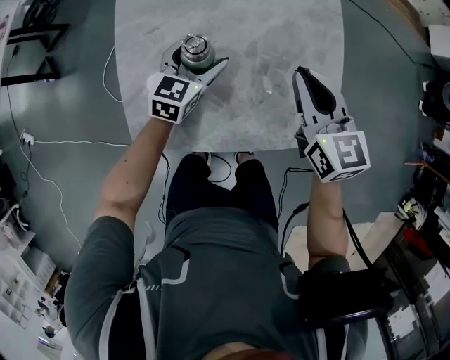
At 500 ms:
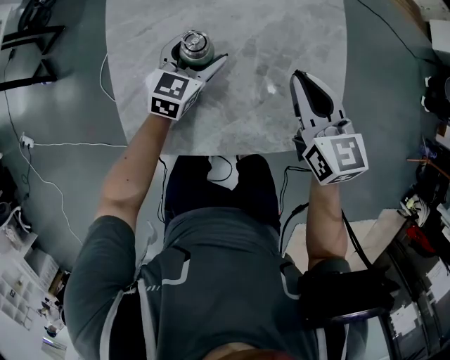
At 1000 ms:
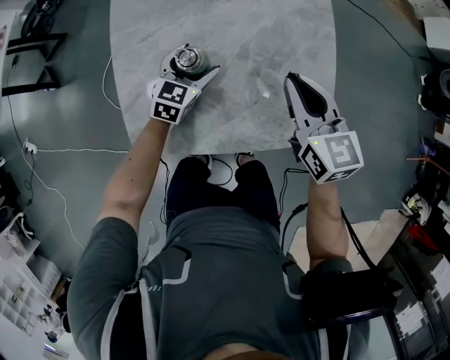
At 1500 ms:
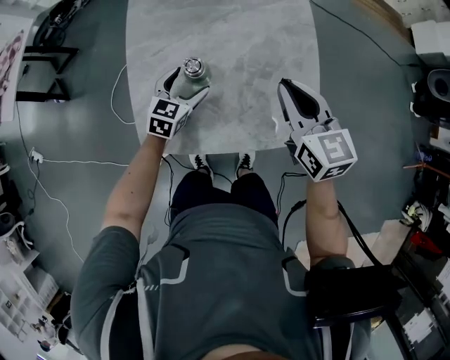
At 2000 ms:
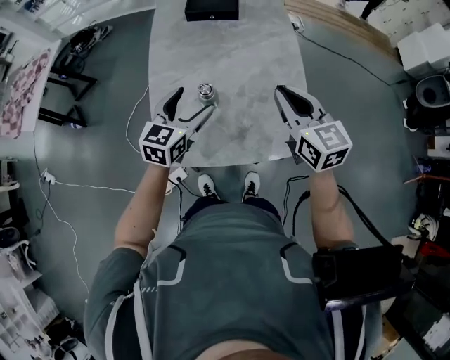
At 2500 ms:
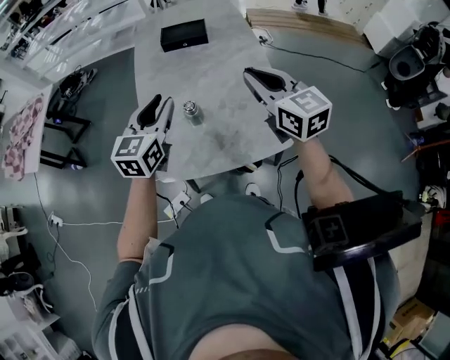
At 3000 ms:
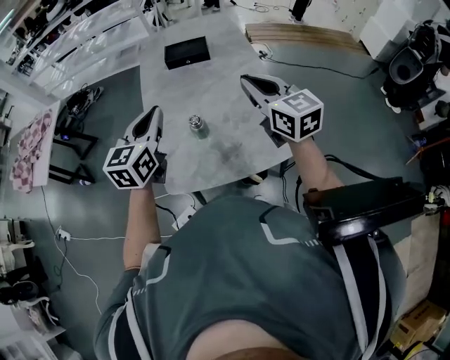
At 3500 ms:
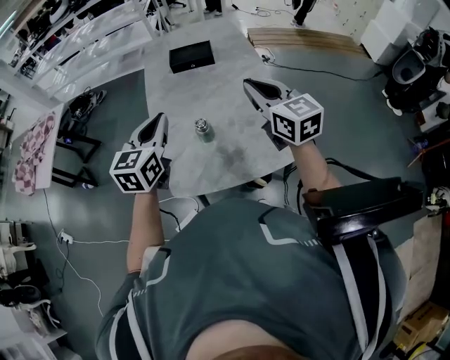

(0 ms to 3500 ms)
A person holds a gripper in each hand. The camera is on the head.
0 ms - 2000 ms: The grippers both shift upward and backward by approximately 20 cm.
2000 ms - 3500 ms: The right gripper shifts some 10 cm upward. The left gripper moves upward, some 15 cm, and closes up.

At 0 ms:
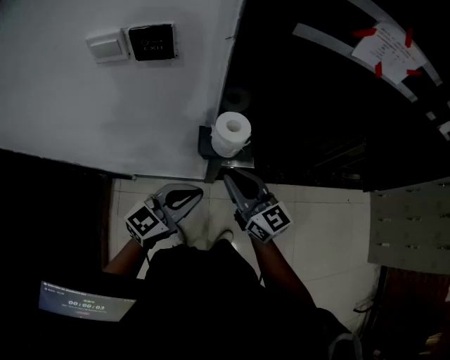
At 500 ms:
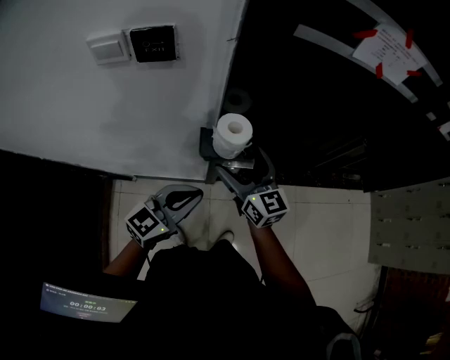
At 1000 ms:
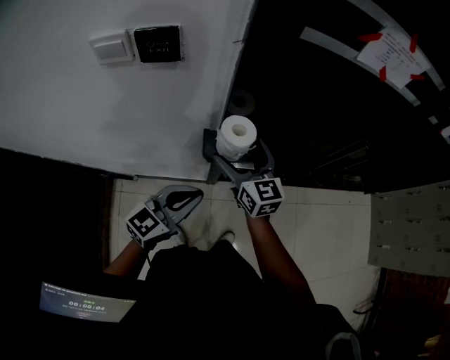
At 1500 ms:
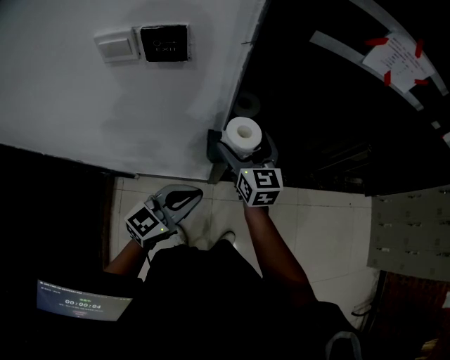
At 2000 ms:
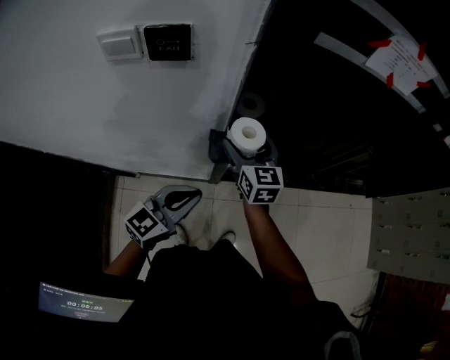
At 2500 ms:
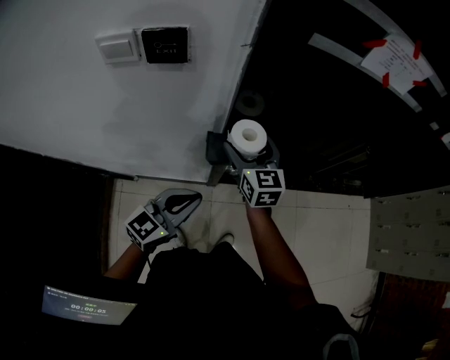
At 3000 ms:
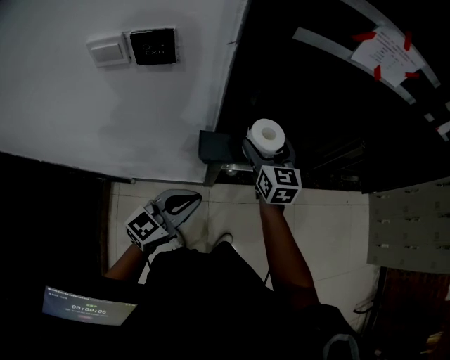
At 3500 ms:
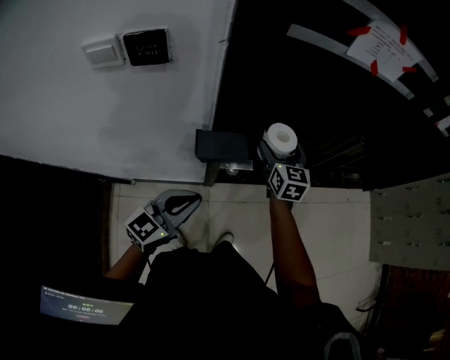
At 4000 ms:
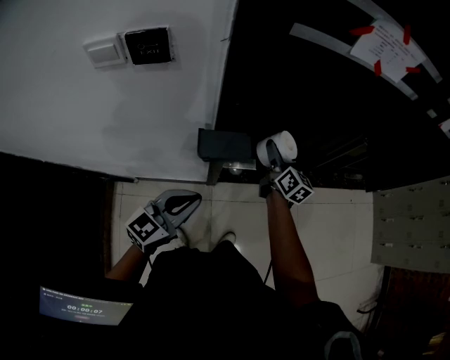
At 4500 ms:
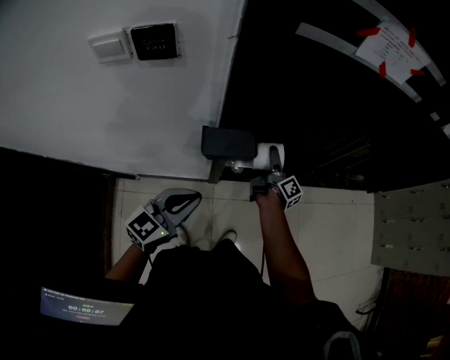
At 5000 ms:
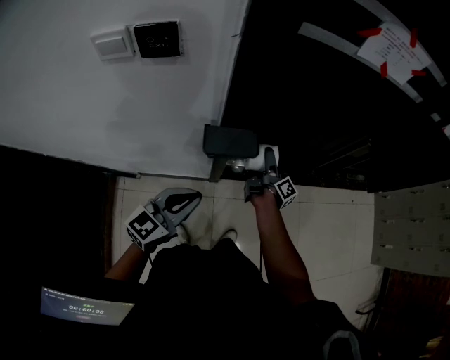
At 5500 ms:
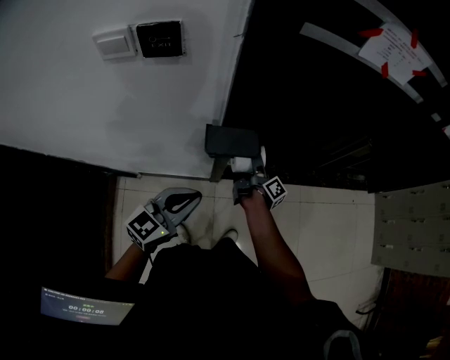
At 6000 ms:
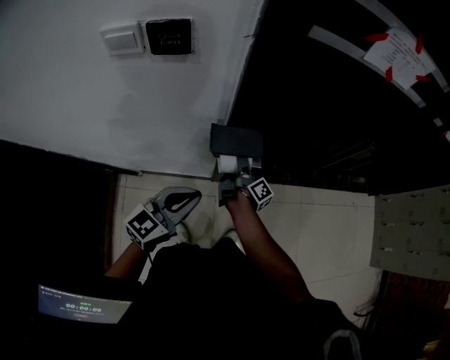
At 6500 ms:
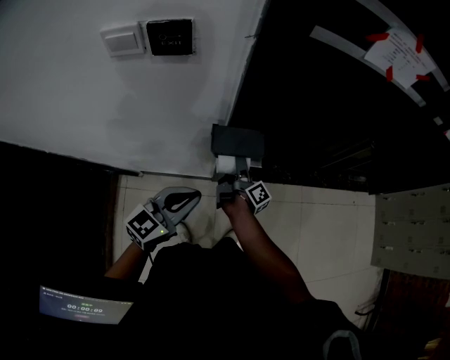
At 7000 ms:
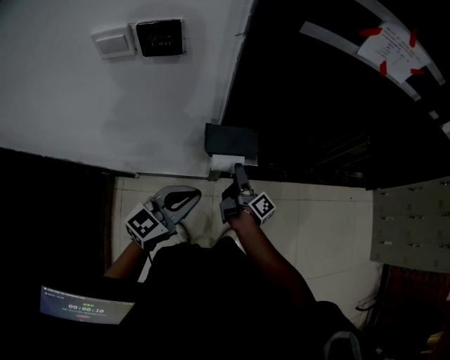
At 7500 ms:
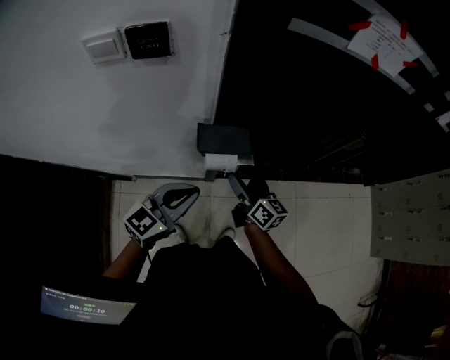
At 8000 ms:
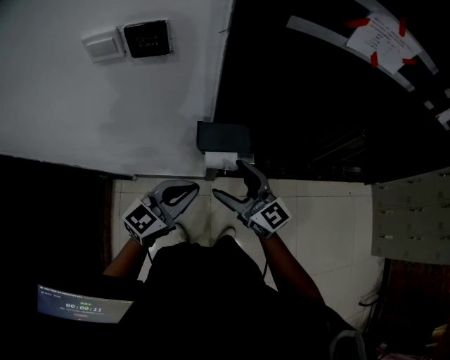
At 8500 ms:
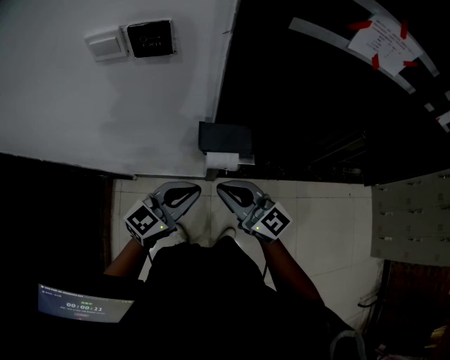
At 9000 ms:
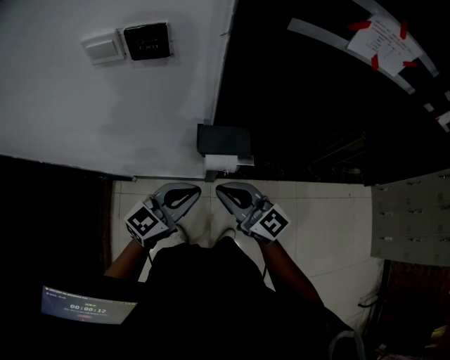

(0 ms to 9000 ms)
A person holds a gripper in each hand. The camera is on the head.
0 ms - 2000 ms: The right gripper is displaced forward by roughly 15 cm, turns by roughly 30 degrees, and opens.
2000 ms - 4500 ms: The right gripper goes roughly 20 cm to the right and downward, and twists approximately 80 degrees clockwise, seen from behind.
4500 ms - 7000 ms: The right gripper travels backward and to the left by roughly 15 cm.
7000 ms - 9000 ms: The right gripper heads upward and backward, covering approximately 20 cm, rotates around the line of its fingers by some 80 degrees, counterclockwise from behind, and closes.

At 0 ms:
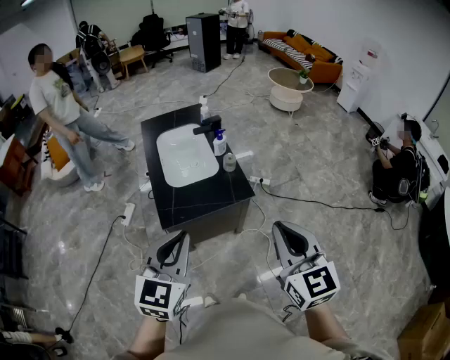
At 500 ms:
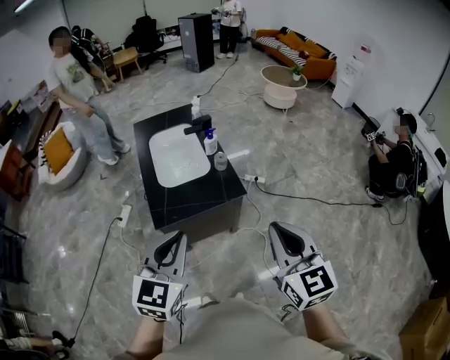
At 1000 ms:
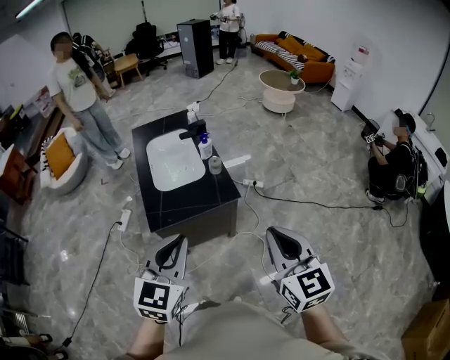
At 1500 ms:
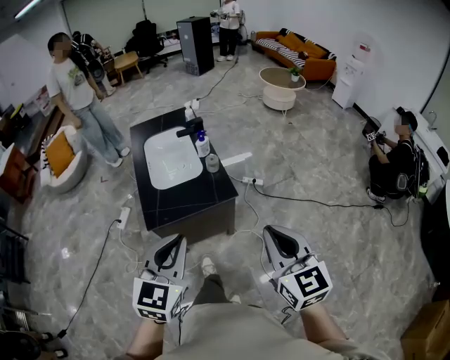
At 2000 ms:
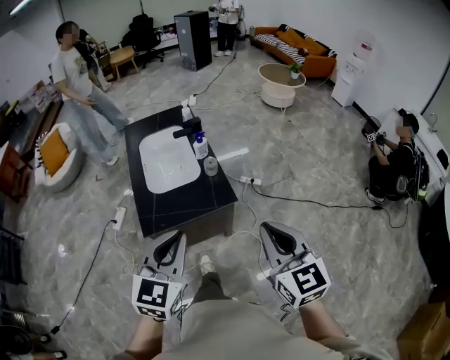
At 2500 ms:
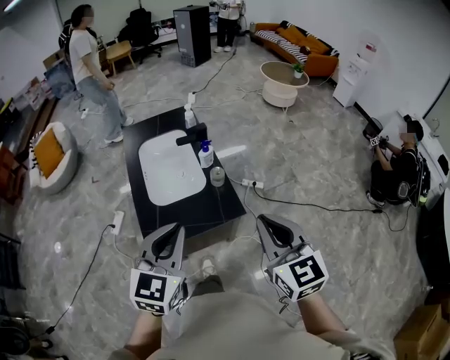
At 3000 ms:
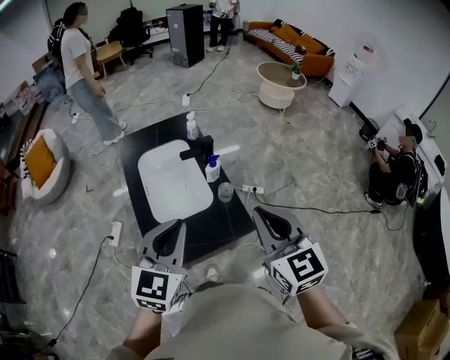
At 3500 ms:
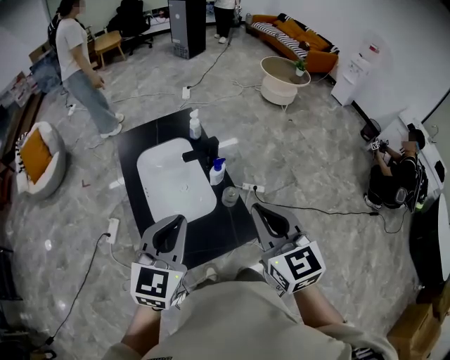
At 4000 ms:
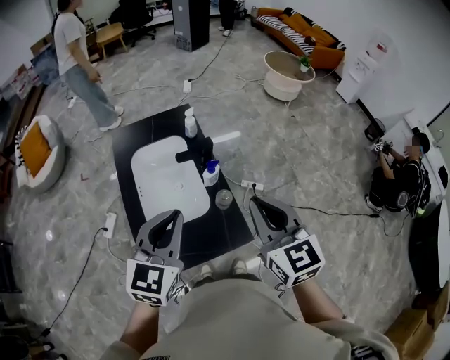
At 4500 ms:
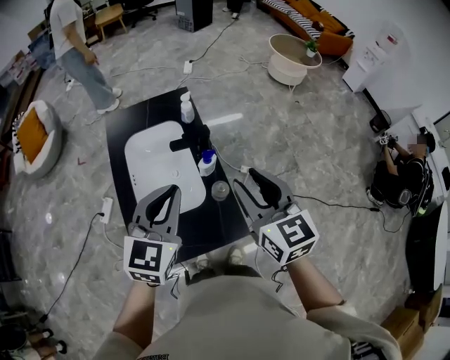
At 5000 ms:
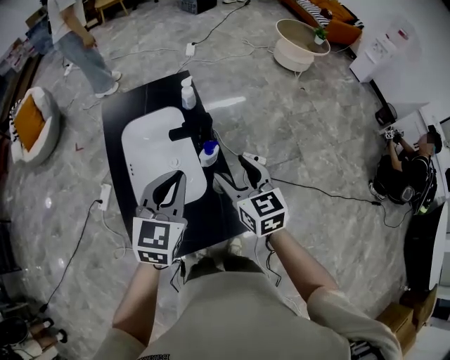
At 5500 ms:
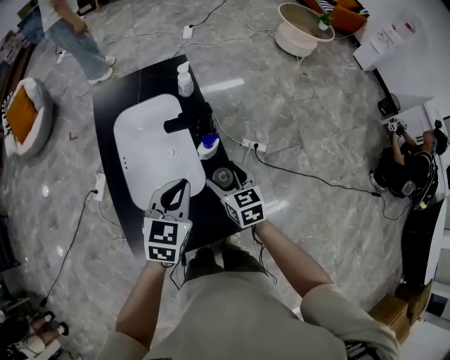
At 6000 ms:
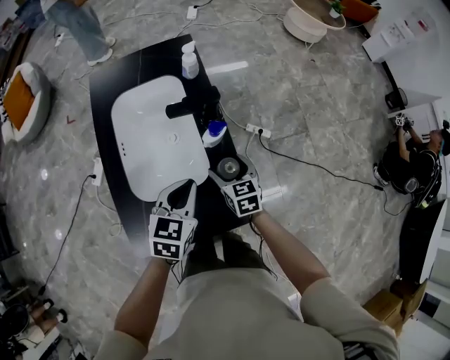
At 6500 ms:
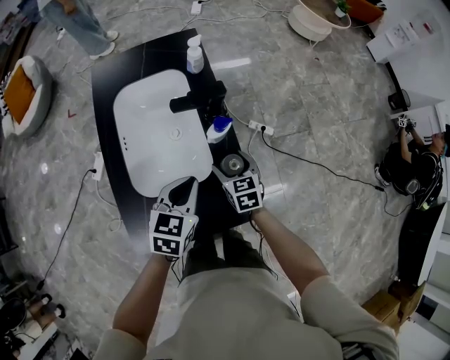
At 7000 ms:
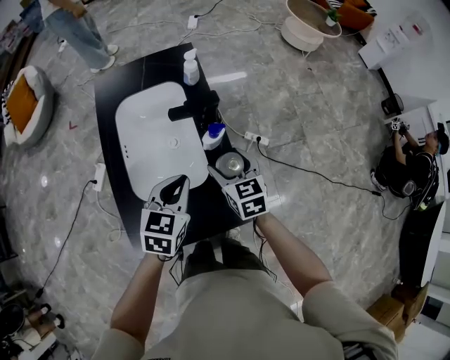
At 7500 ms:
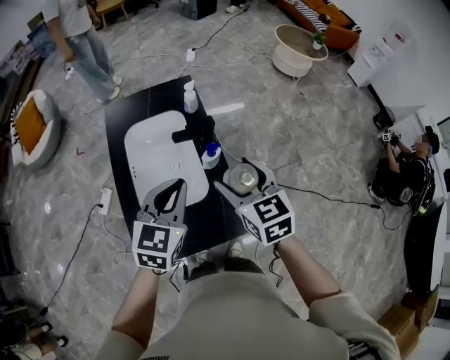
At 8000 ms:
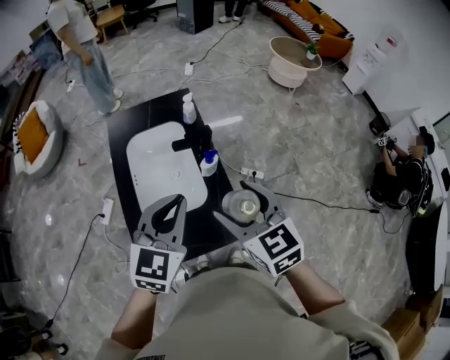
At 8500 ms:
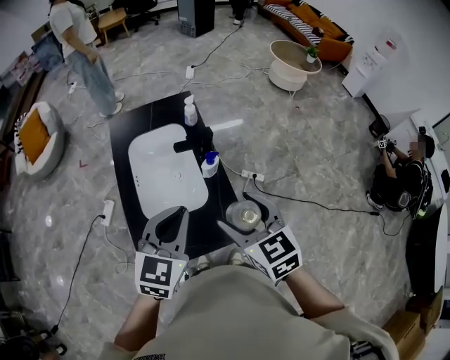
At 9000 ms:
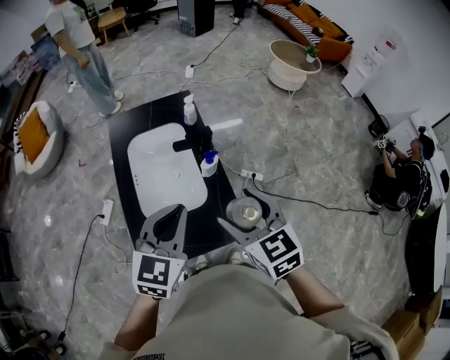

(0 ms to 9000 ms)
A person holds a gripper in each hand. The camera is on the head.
0 ms - 2000 ms: The two grippers go about 5 cm to the right.
2000 ms - 4500 ms: The grippers both shift forward by approximately 40 cm. The right gripper opens up.
4500 ms - 7000 ms: The grippers both shift downward by roughly 25 cm. The left gripper rotates about 20 degrees. Meanwhile the right gripper opens its fingers.
7000 ms - 9000 ms: Both grippers travel together upward and backward, some 25 cm.

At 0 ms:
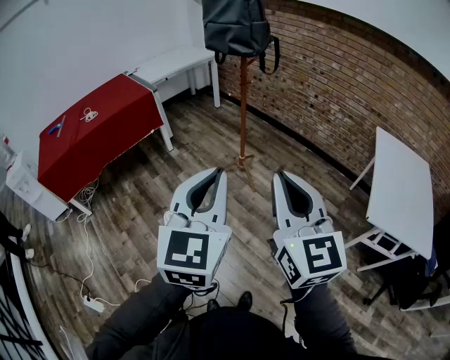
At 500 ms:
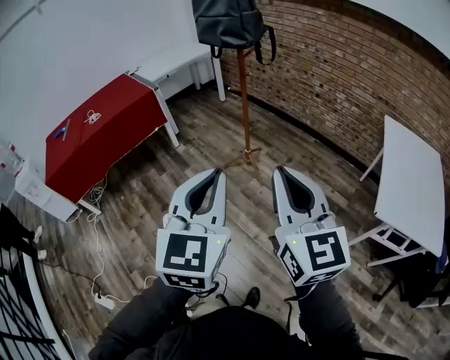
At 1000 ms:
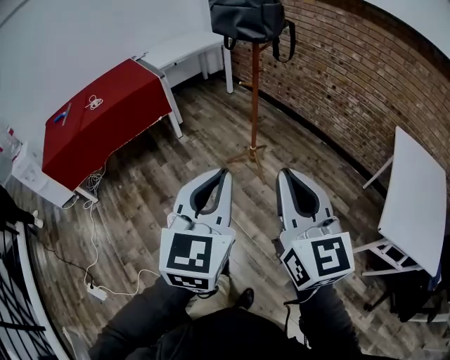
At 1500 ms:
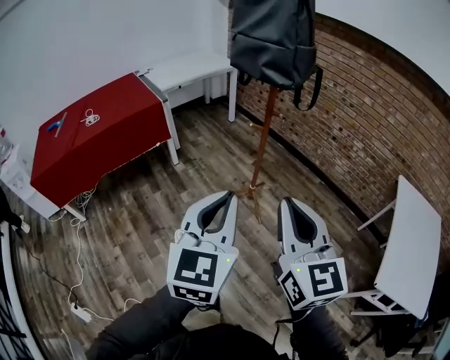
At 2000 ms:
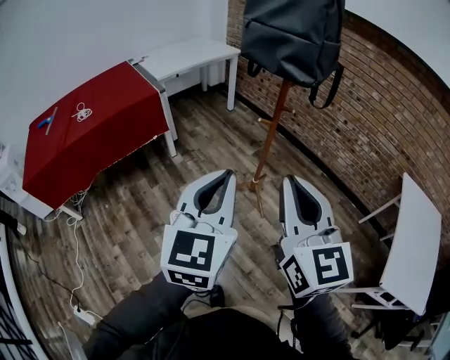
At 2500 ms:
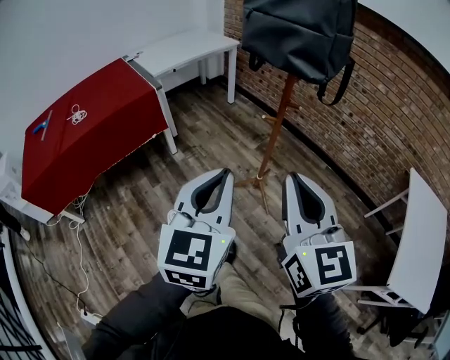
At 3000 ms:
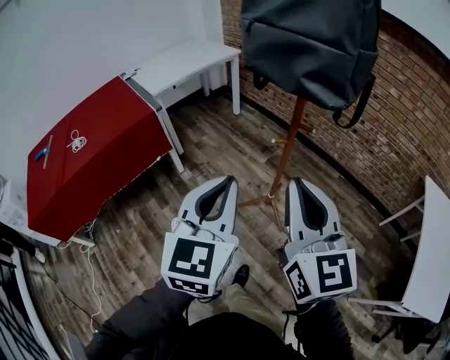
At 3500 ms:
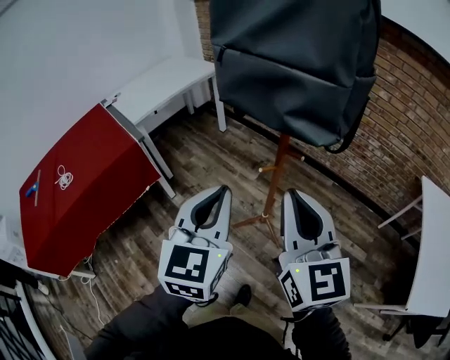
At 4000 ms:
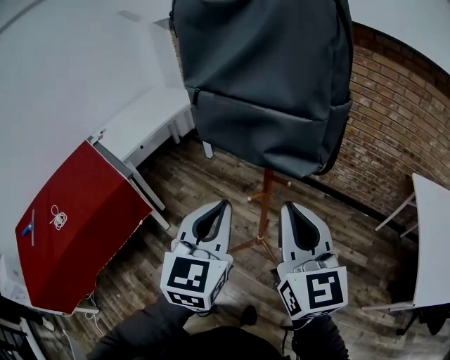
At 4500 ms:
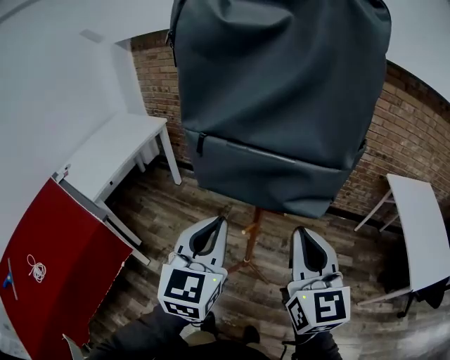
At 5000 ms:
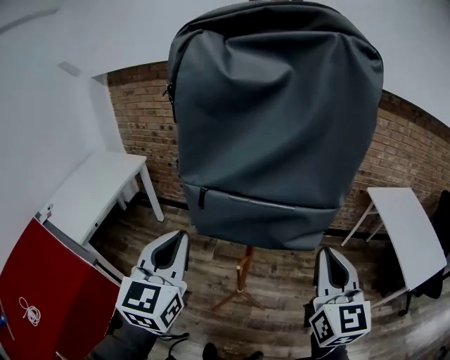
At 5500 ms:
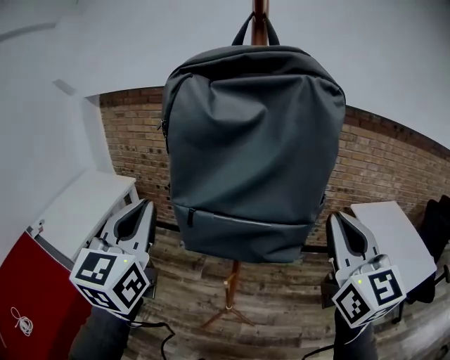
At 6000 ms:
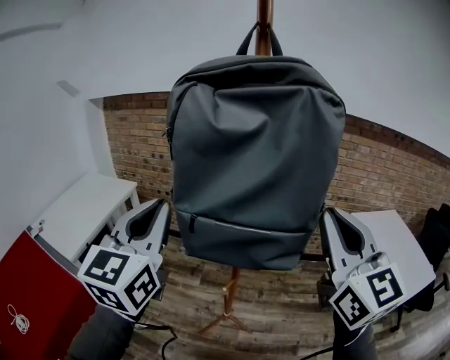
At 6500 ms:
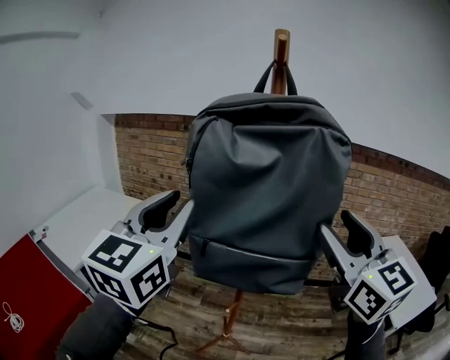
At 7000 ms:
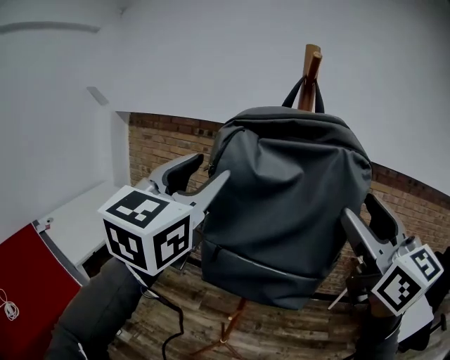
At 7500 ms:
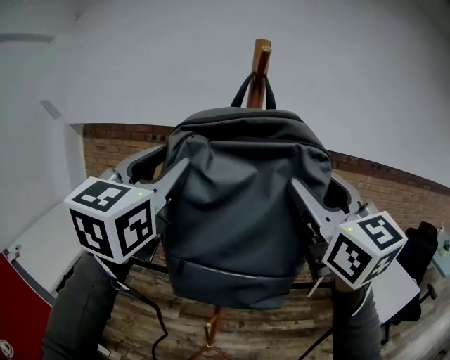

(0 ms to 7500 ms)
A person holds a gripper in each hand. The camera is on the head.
0 ms - 2000 ms: Both grippers travel together forward, approximately 30 cm.
2000 ms - 4000 ms: The grippers both shift forward by some 30 cm.
4000 ms - 5500 ms: The right gripper travels upward by approximately 15 cm, and swivels about 30 degrees, while the left gripper shifts about 25 cm upward, to the left and forward, and turns by about 20 degrees.
5500 ms - 7500 ms: The right gripper shifts some 15 cm upward and to the left, and opens up. Meanwhile the left gripper goes roughly 15 cm upward, and opens its fingers.
